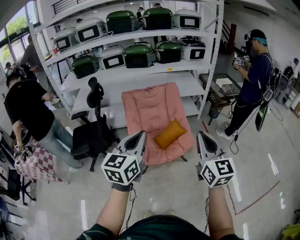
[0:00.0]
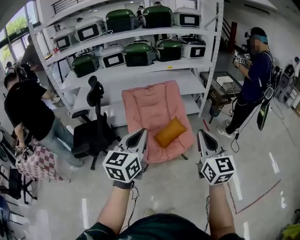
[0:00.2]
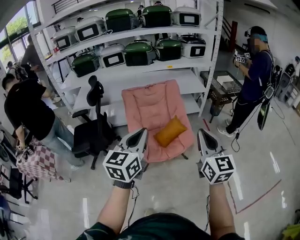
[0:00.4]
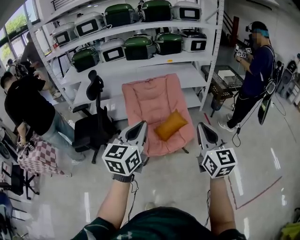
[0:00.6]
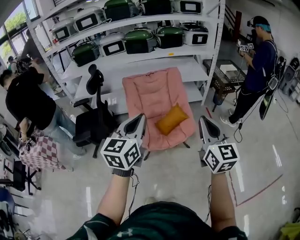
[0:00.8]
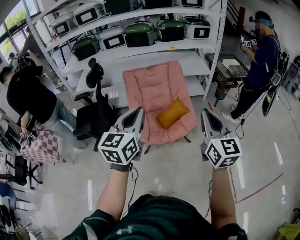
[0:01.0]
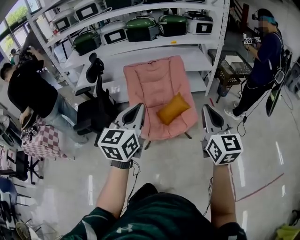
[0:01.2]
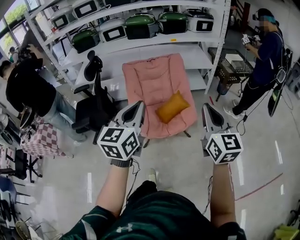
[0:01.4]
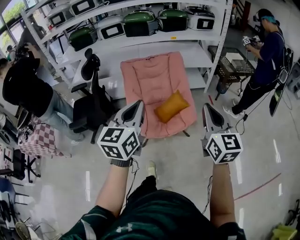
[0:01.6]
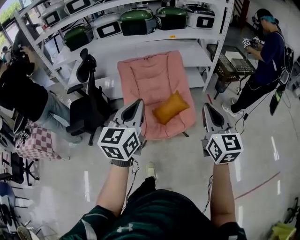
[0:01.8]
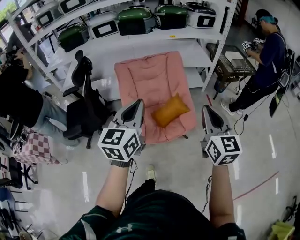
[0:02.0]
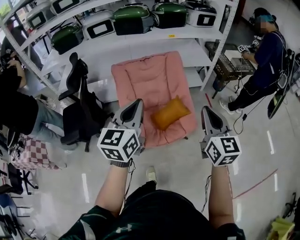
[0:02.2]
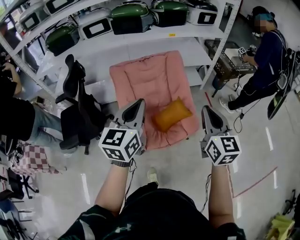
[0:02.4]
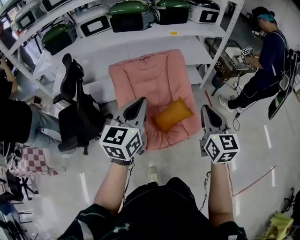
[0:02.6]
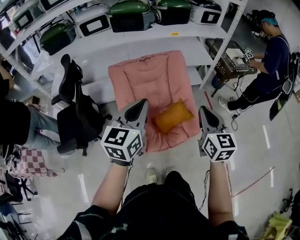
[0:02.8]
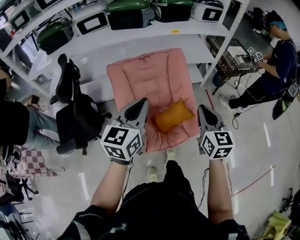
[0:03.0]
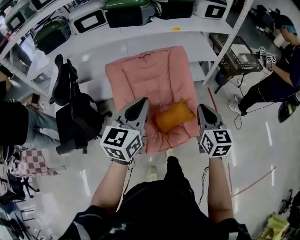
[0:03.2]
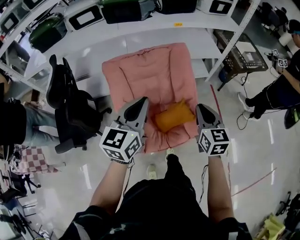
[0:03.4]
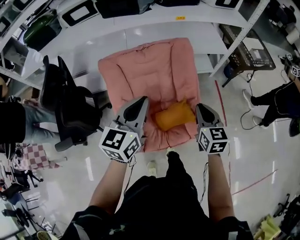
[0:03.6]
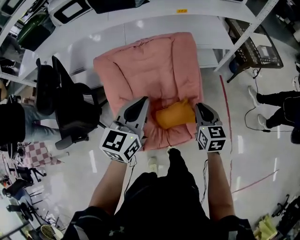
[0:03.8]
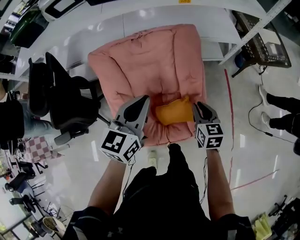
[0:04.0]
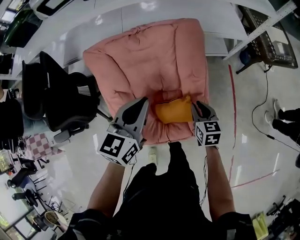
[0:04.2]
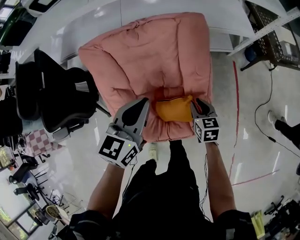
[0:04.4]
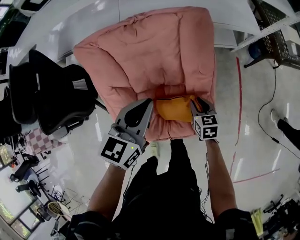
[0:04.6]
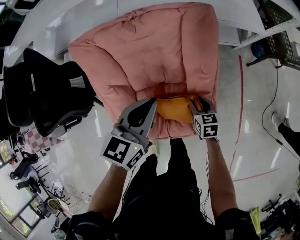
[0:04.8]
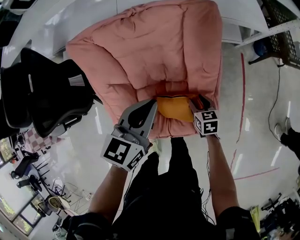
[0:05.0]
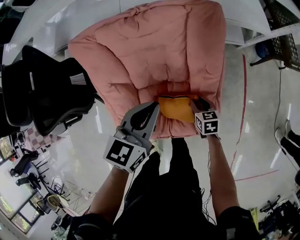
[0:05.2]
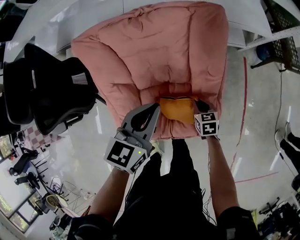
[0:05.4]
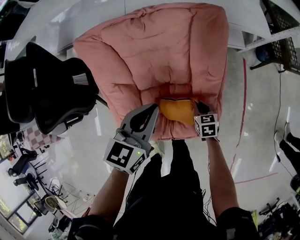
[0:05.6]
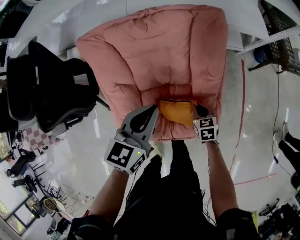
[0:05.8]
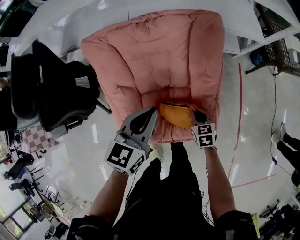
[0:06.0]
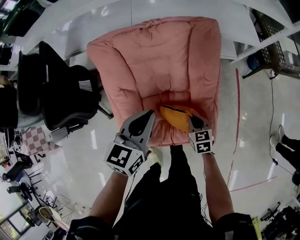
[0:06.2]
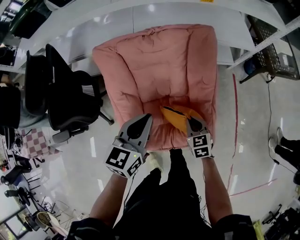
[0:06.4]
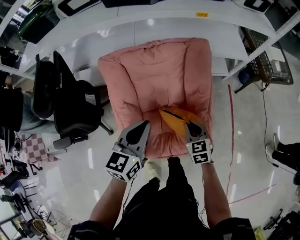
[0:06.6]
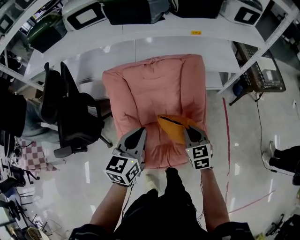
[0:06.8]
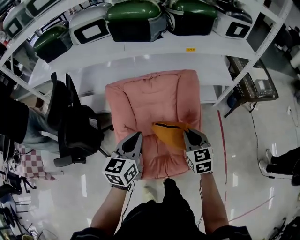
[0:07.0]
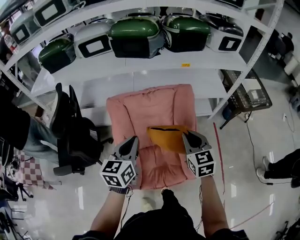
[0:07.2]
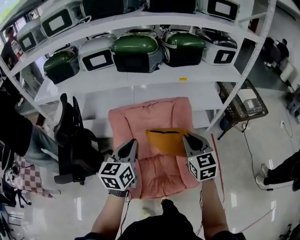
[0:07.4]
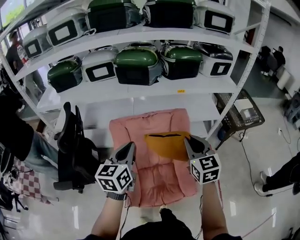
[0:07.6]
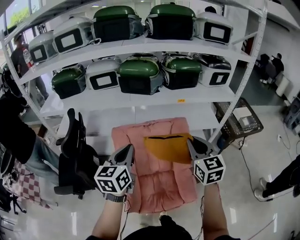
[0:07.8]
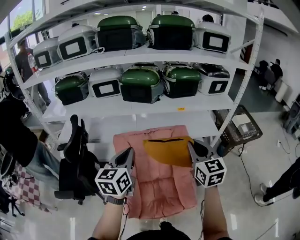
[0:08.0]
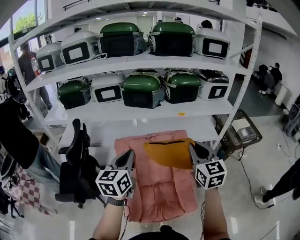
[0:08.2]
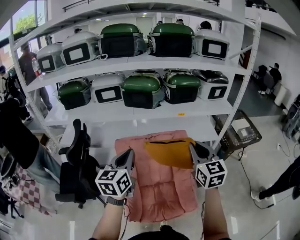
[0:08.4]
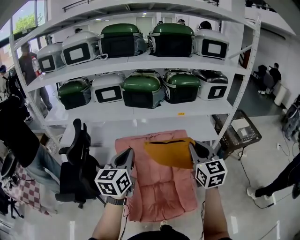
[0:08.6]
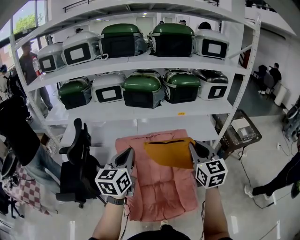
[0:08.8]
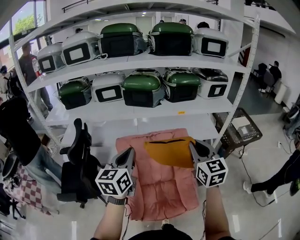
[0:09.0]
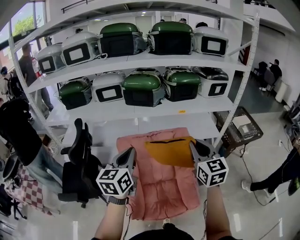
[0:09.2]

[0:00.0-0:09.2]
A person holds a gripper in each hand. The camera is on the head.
0:00.0 to 0:01.6: The right gripper heads forward and to the right, covering roughly 10 cm. The left gripper moves forward, some 5 cm.
0:01.6 to 0:03.0: The left gripper moves forward, roughly 30 cm. The right gripper goes approximately 30 cm forward and downward.
0:03.0 to 0:04.6: The right gripper goes some 50 cm downward and forward, points its fingers some 30 degrees further downward, and opens its fingers. The left gripper shifts approximately 35 cm forward and downward.
0:04.6 to 0:06.2: The right gripper heads backward and to the left, covering about 10 cm, reaches approximately 10 cm downward, then returns, and closes its fingers. The left gripper heads to the left and backward, covering roughly 10 cm.
0:06.2 to 0:07.6: The left gripper travels upward by roughly 25 cm; the right gripper heads upward, covering roughly 50 cm, and angles its fingers upward, by some 30 degrees.
0:07.6 to 0:09.2: Both grippers move upward, some 10 cm.

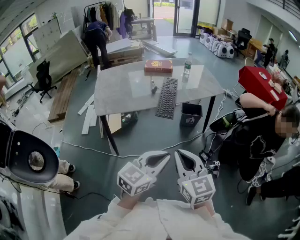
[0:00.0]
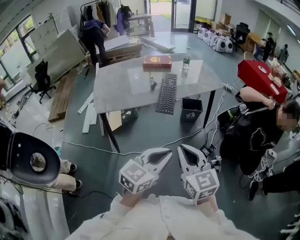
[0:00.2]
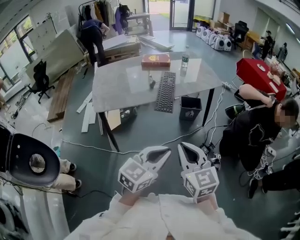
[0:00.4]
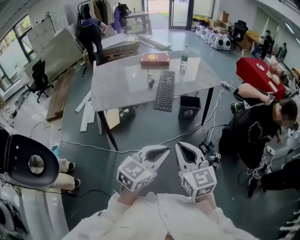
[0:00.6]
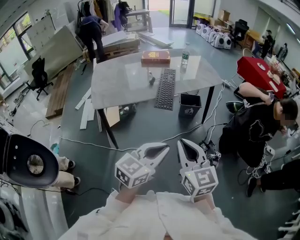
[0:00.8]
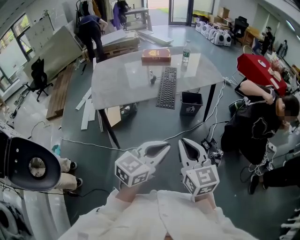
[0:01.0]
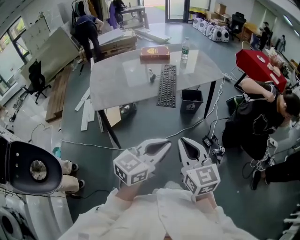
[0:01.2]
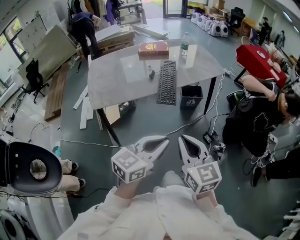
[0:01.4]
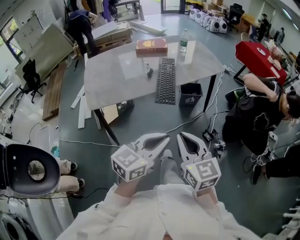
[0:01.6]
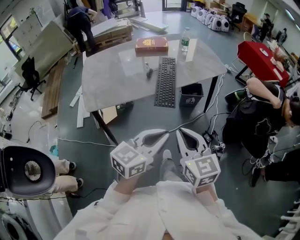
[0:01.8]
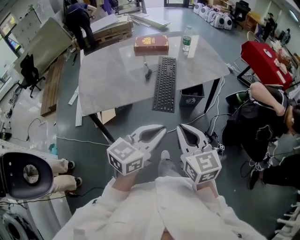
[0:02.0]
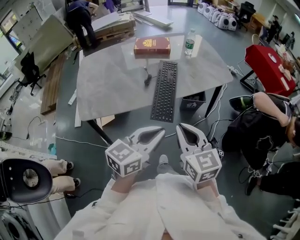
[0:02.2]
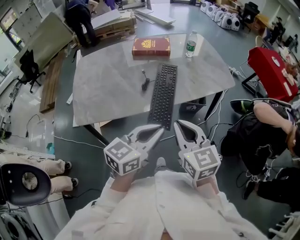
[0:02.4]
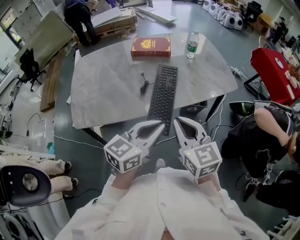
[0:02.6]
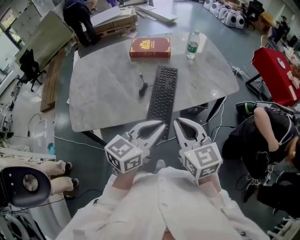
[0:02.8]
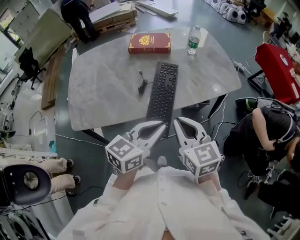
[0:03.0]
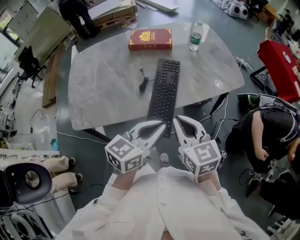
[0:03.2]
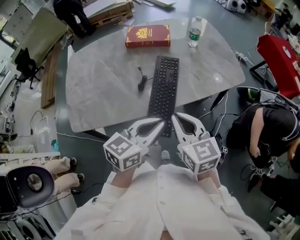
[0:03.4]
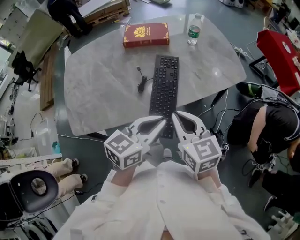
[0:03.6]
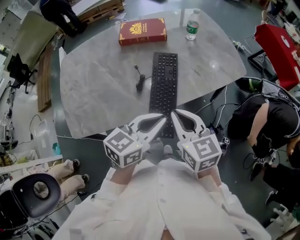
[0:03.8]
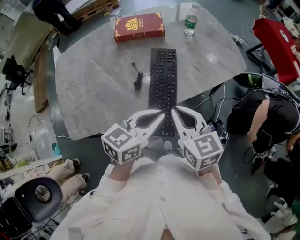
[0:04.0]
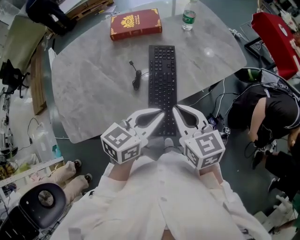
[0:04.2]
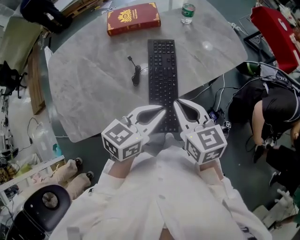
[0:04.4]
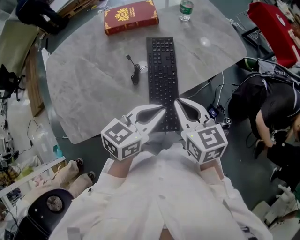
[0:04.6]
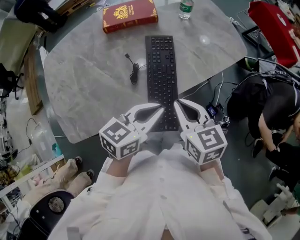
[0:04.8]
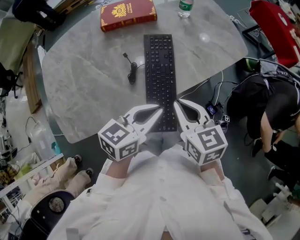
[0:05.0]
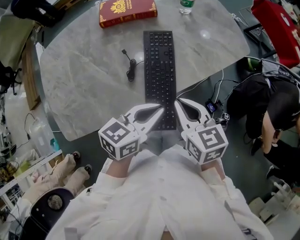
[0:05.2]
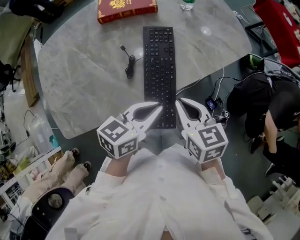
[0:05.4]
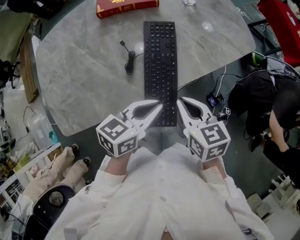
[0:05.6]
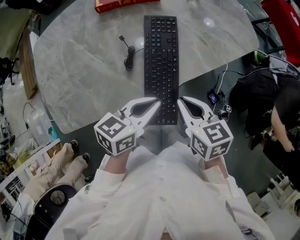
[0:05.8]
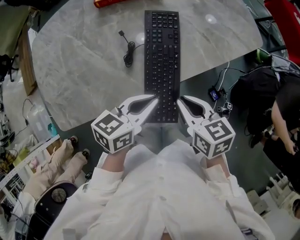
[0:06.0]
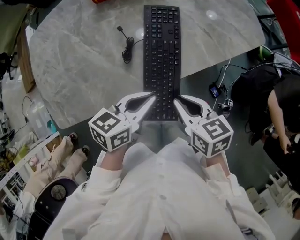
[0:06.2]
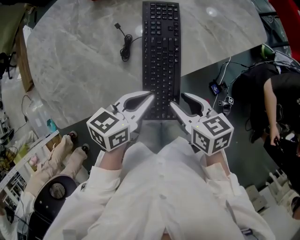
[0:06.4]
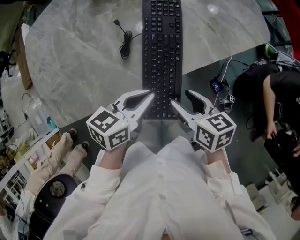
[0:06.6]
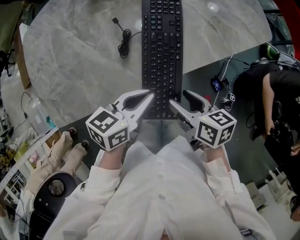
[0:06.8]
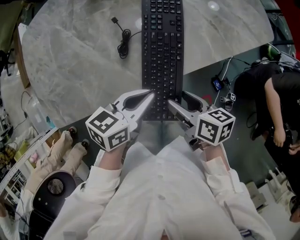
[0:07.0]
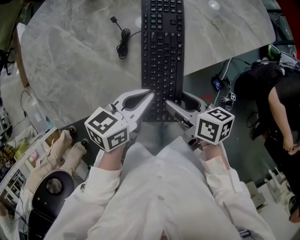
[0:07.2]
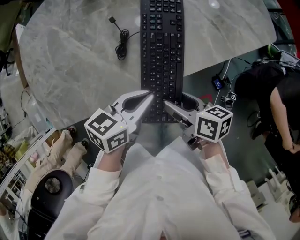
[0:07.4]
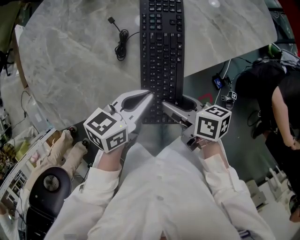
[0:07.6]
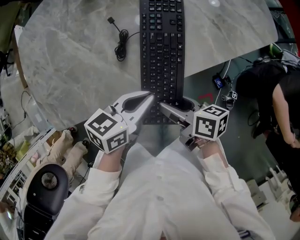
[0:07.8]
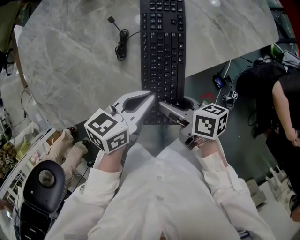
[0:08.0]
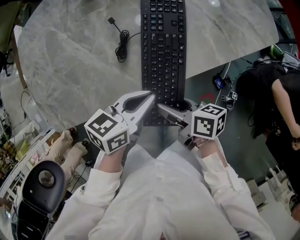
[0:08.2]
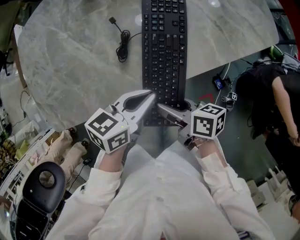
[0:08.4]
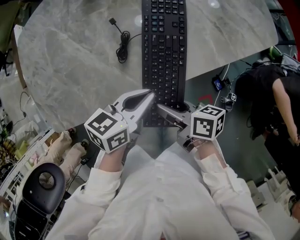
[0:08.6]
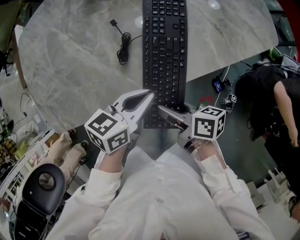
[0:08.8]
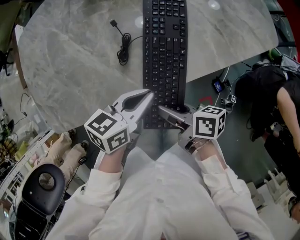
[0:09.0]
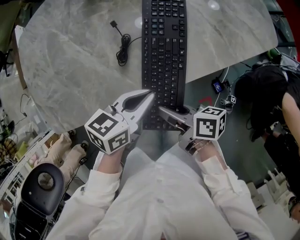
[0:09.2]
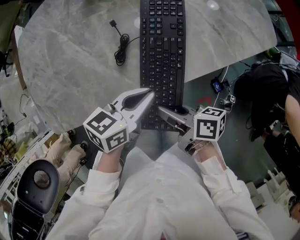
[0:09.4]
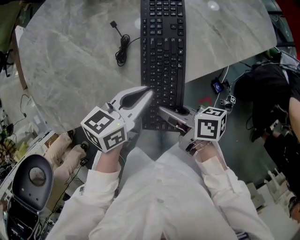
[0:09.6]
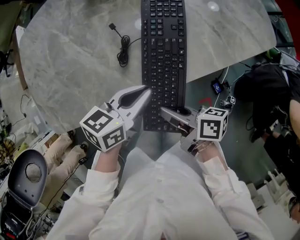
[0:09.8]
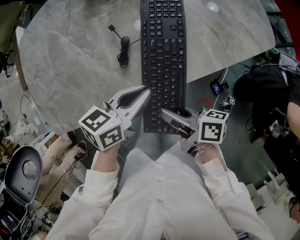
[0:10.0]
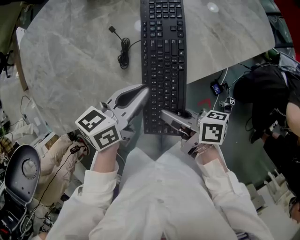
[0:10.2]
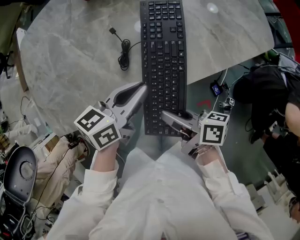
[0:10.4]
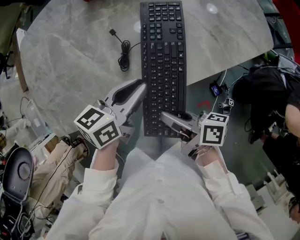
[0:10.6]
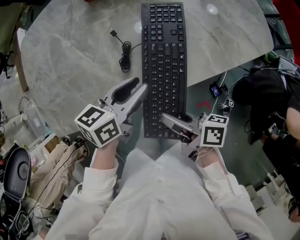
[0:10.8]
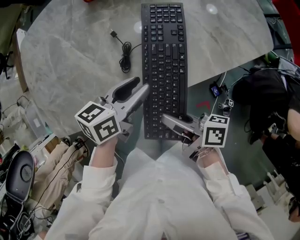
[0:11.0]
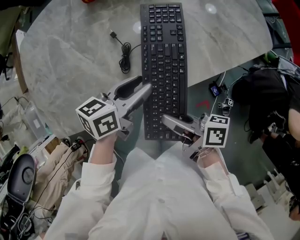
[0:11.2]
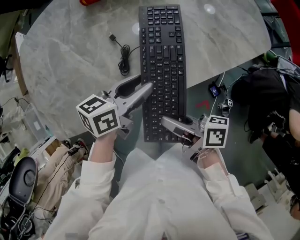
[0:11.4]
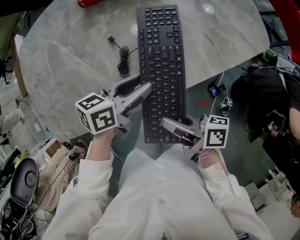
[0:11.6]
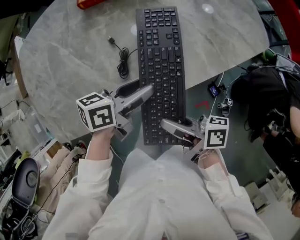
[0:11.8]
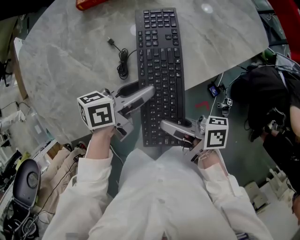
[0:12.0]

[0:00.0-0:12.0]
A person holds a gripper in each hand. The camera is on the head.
0:00.0 to 0:01.6: The left gripper travels forward and to the left by roughly 10 cm; the right gripper is displaced forward by approximately 5 cm.
0:01.6 to 0:03.0: The grippers both shift forward by some 30 cm.
0:03.0 to 0:04.4: The grippers both shift forward and downward by roughly 10 cm.
0:04.4 to 0:06.0: Both grippers travel together downward, roughly 10 cm.
0:06.0 to 0:07.6: The right gripper shifts some 10 cm downward, turns by about 40 degrees, and opens; the left gripper goes about 5 cm downward.
0:07.6 to 0:10.4: The grippers move only a little.
0:10.4 to 0:12.0: The left gripper opens.

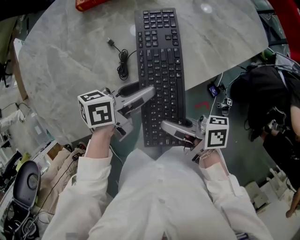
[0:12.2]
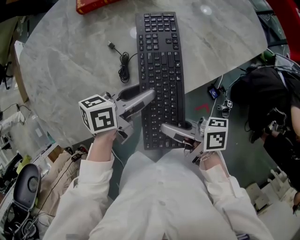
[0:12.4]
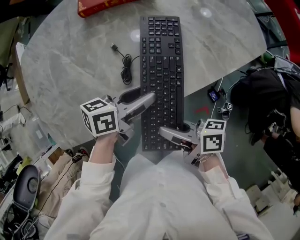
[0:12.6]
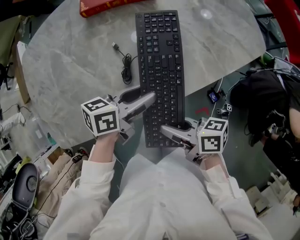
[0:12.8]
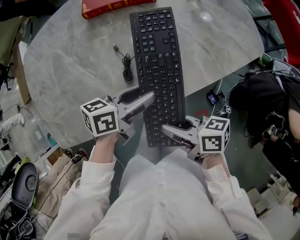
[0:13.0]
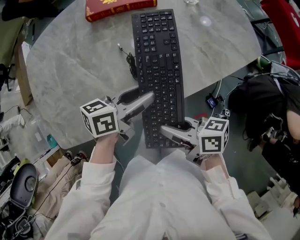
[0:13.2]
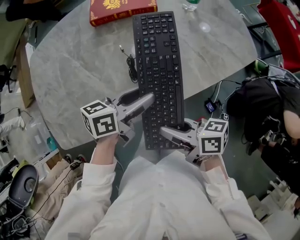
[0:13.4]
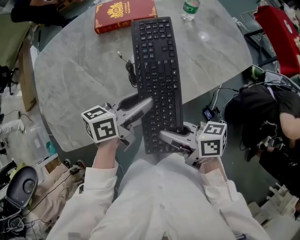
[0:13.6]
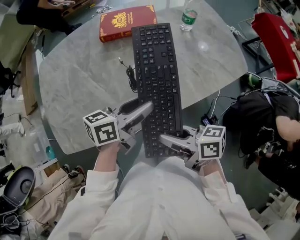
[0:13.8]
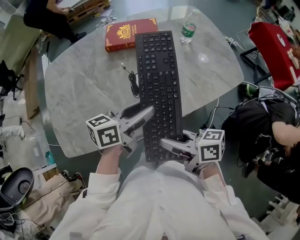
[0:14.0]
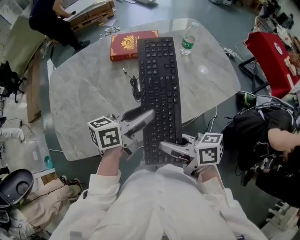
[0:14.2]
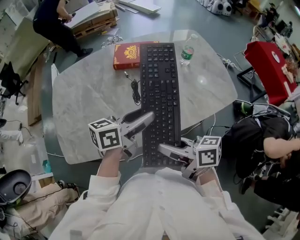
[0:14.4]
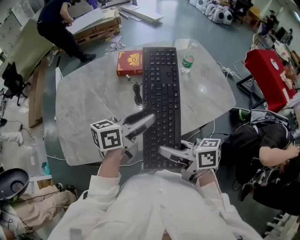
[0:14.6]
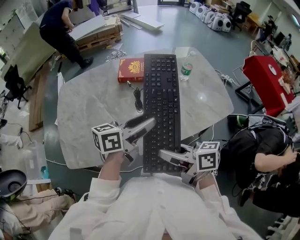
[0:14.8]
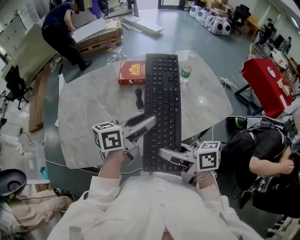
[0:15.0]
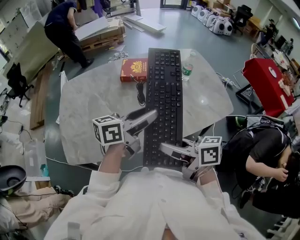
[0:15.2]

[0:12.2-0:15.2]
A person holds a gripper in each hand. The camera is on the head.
0:12.2 to 0:13.8: The grippers move only a little.
0:13.8 to 0:15.2: The grippers stay close to where they were, moving slightly.
